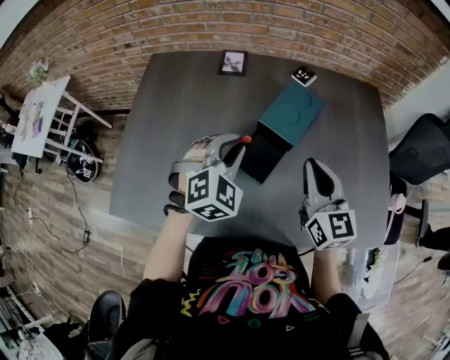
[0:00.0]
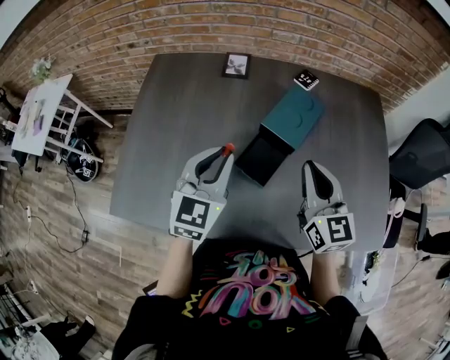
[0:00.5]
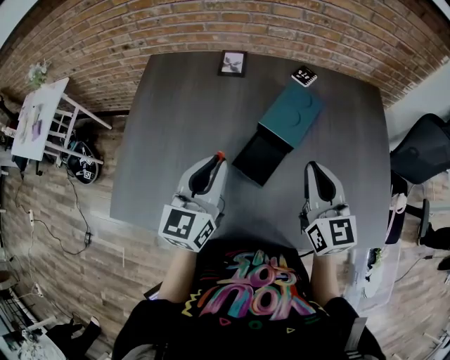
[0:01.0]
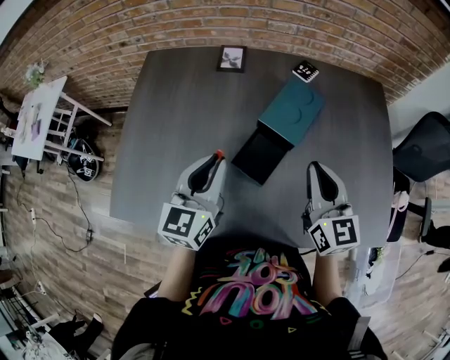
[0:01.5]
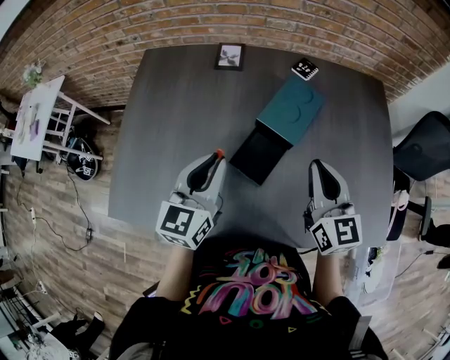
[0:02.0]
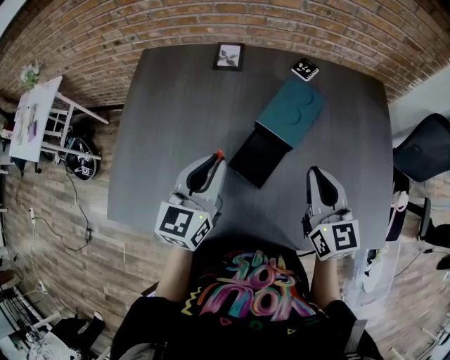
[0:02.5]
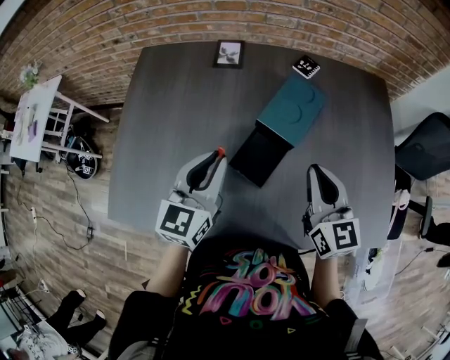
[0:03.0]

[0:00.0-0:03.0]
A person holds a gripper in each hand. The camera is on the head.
0:00.0 to 0:01.5: The left gripper ends up some 5 cm from where it was, and rotates around the line of its fingers by some 50 degrees, counterclockwise from behind.
0:01.5 to 0:03.0: The grippers make only small movements.

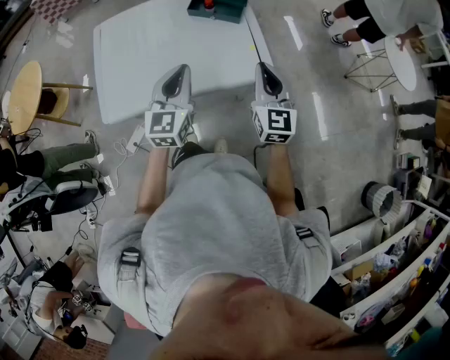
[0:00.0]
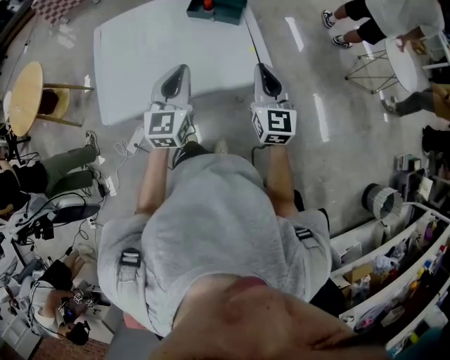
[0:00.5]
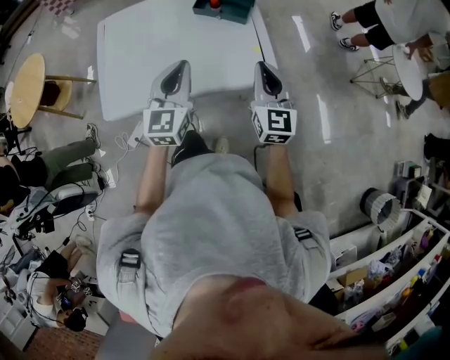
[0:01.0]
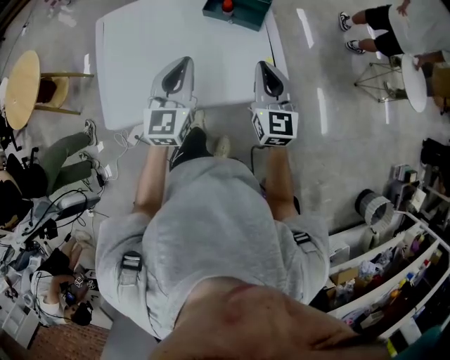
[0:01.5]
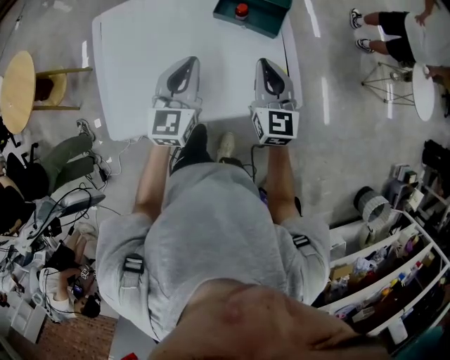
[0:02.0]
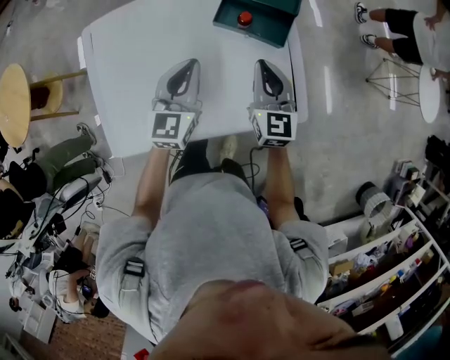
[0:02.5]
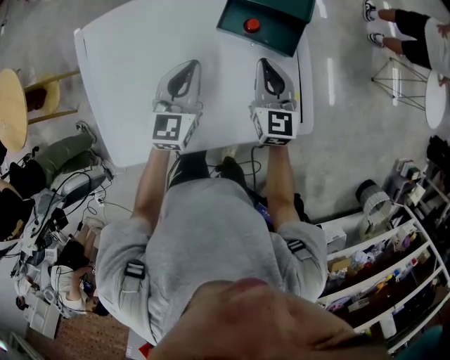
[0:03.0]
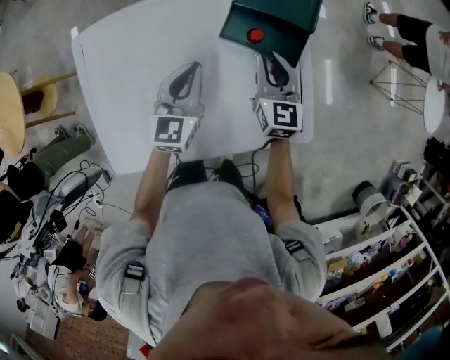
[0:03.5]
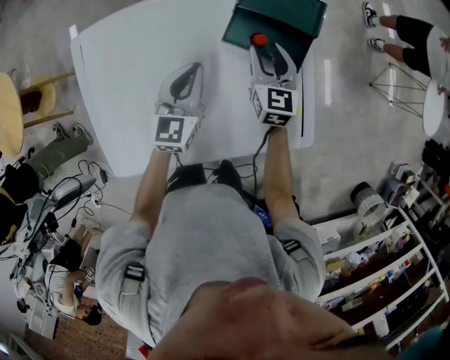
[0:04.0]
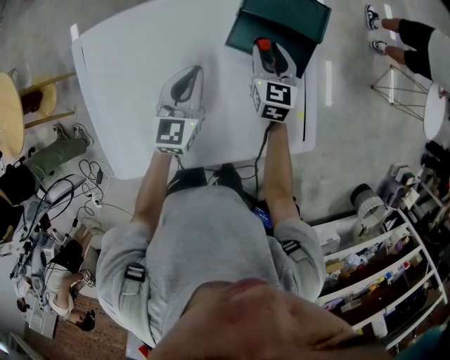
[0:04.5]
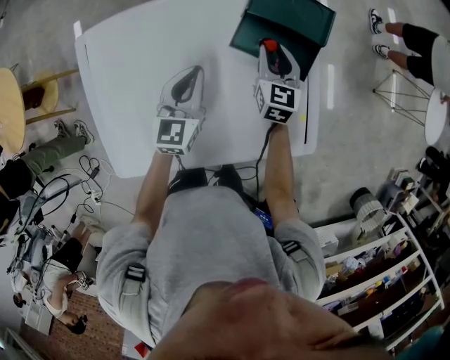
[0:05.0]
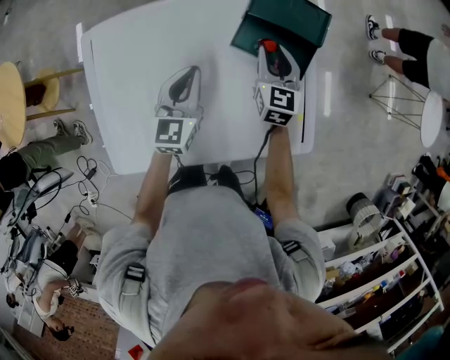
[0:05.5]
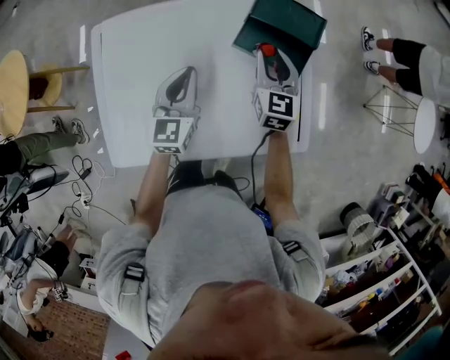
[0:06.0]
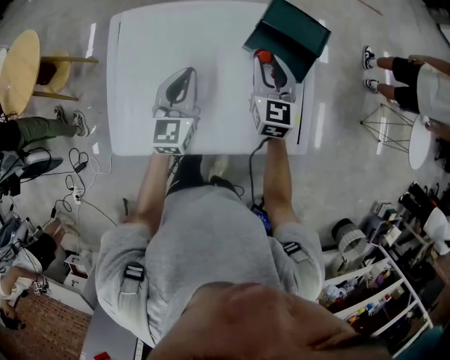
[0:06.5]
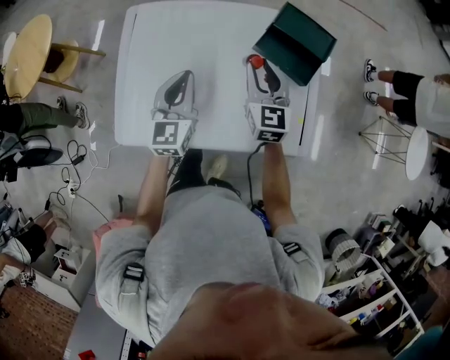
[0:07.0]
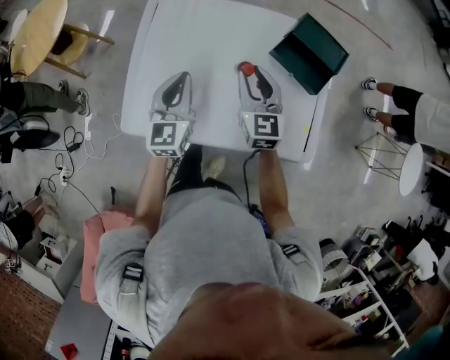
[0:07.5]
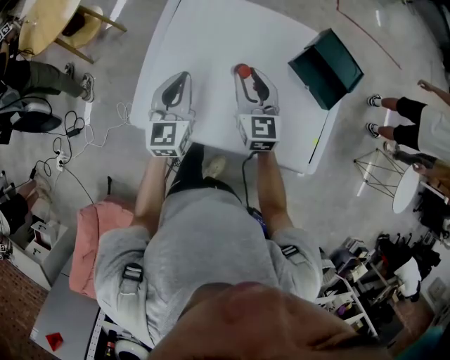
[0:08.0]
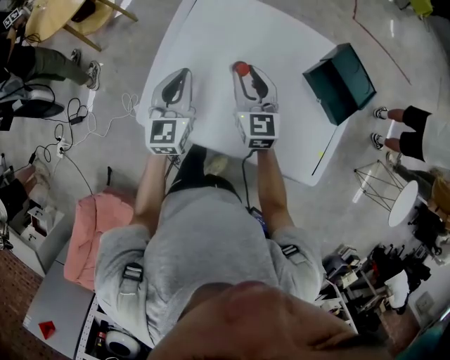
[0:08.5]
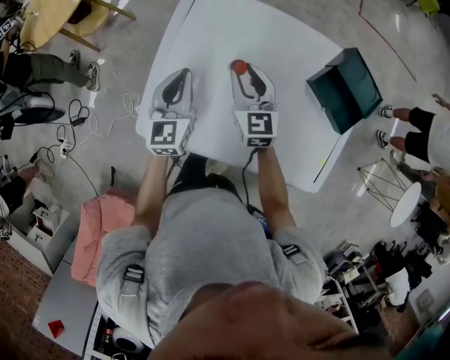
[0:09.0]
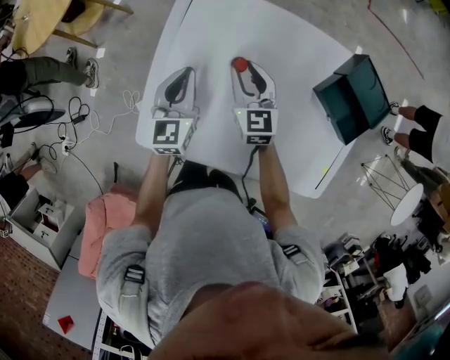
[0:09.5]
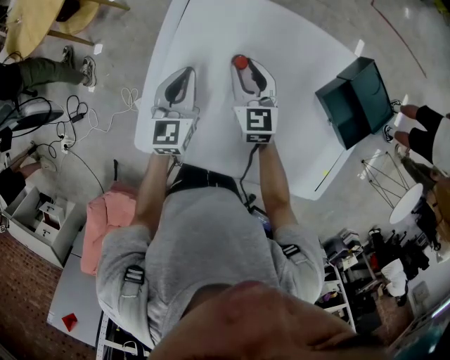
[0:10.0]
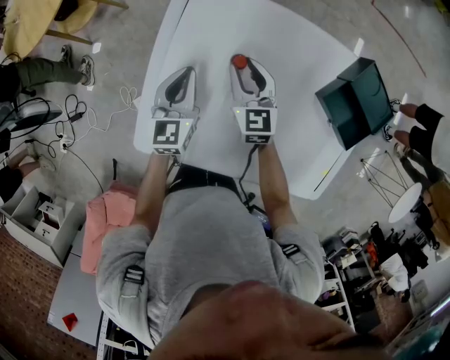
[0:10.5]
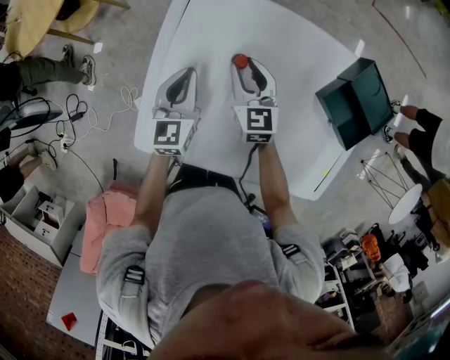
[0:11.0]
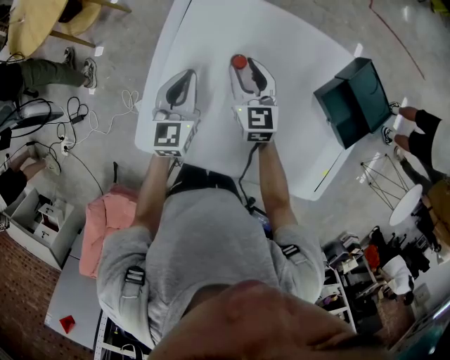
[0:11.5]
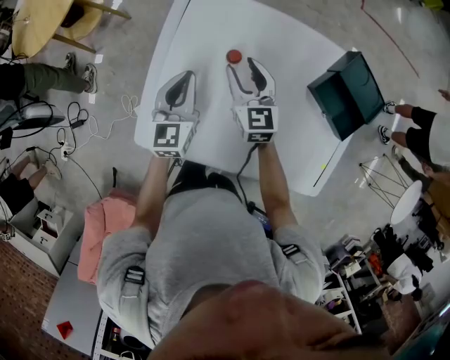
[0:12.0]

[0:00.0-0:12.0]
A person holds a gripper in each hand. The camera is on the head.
0:00.0 to 0:02.0: The left gripper travels forward by some 20 cm, while the right gripper travels forward and to the left by about 25 cm.
0:02.0 to 0:04.0: The grippers both shift forward and downward by approximately 20 cm. The right gripper opens its fingers.
0:04.0 to 0:06.0: The right gripper travels upward by about 5 cm. The left gripper shifts by approximately 10 cm.
0:06.0 to 0:08.0: The left gripper moves some 20 cm, and changes its angle by approximately 20 degrees, while the right gripper moves approximately 25 cm, and rotates about 30 degrees.
0:08.0 to 0:10.0: The grippers both shift forward and downward by some 20 cm.
0:10.0 to 0:12.0: The right gripper shifts by approximately 5 cm. The left gripper changes place by about 5 cm.

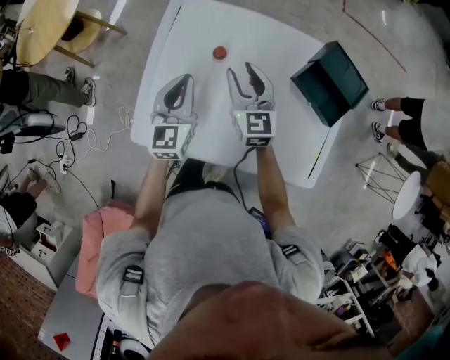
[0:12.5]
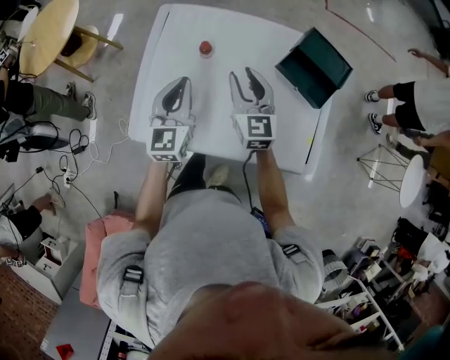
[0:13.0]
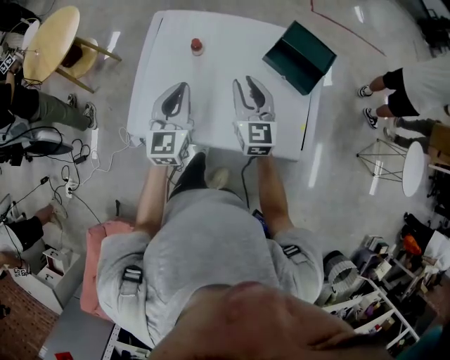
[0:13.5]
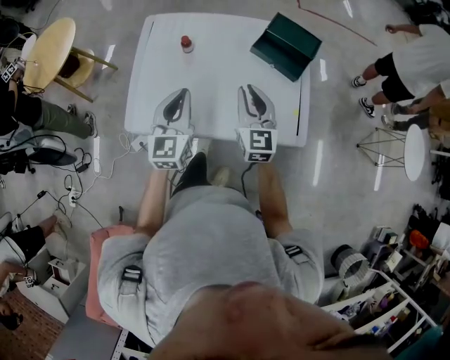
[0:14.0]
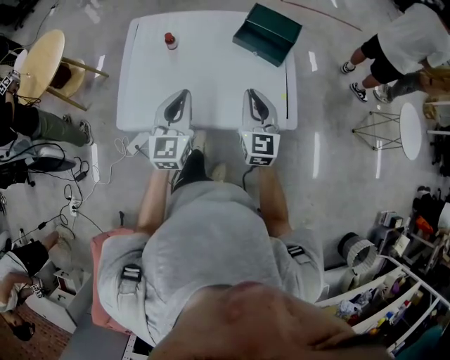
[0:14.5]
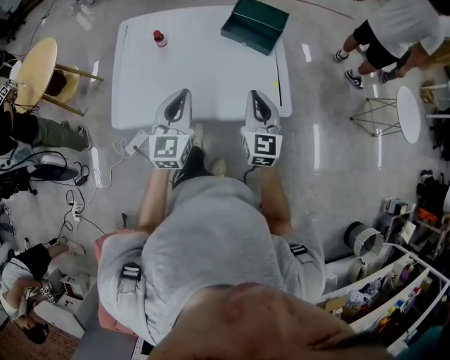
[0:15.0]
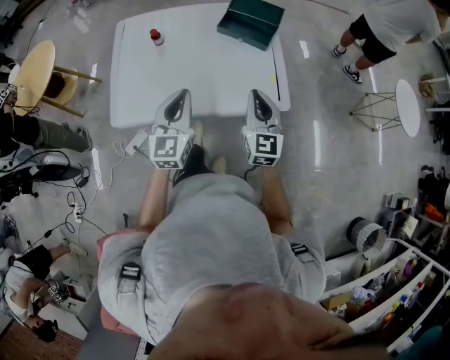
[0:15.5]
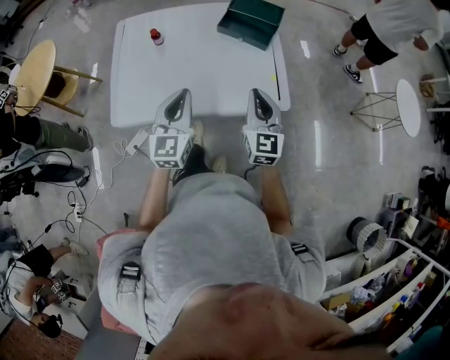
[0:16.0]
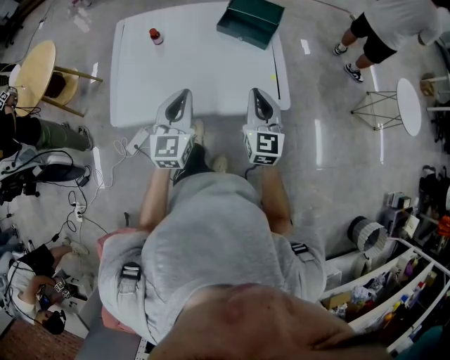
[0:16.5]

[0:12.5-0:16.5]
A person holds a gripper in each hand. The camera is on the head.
0:12.5 to 0:14.5: The two grippers go some 30 cm backward and to the right. The right gripper changes its angle by approximately 20 degrees, and closes.
0:14.5 to 0:16.5: The left gripper shifts by approximately 5 cm. Meanwhile the right gripper heads to the right, covering about 5 cm.

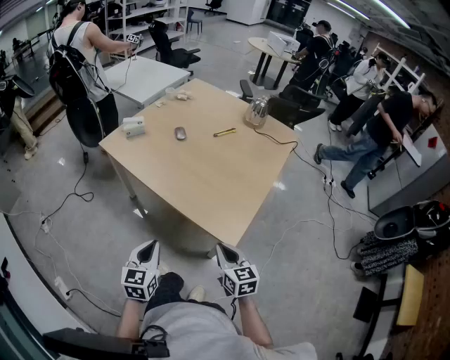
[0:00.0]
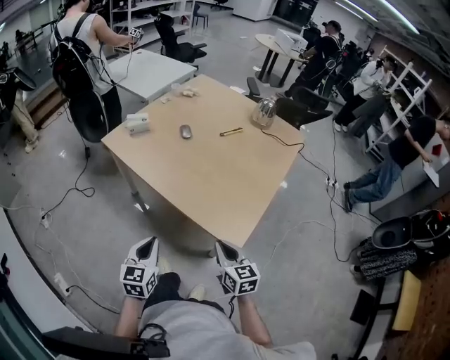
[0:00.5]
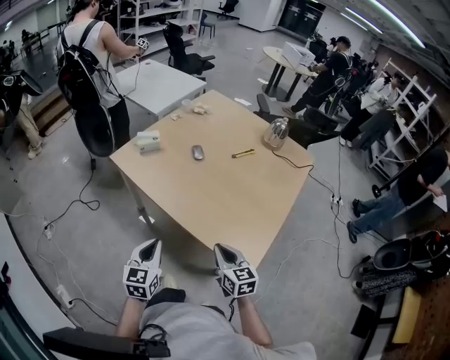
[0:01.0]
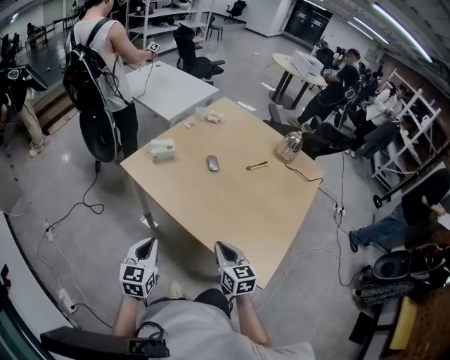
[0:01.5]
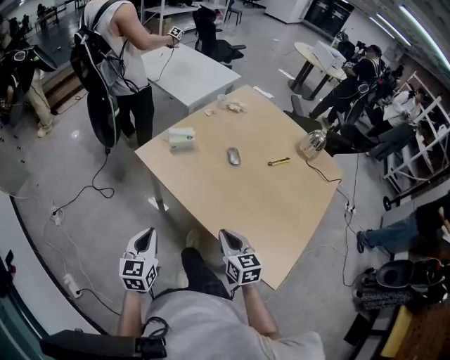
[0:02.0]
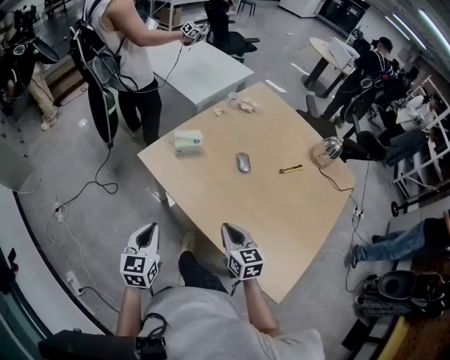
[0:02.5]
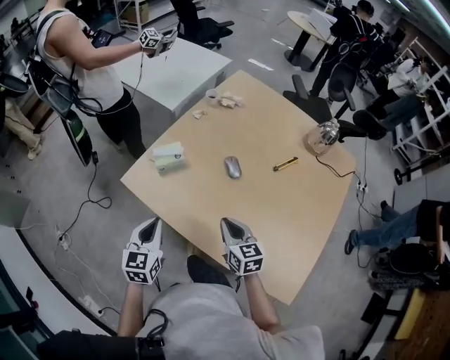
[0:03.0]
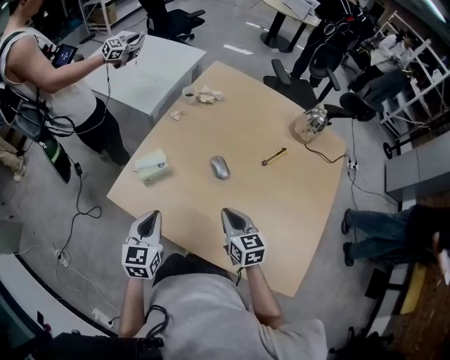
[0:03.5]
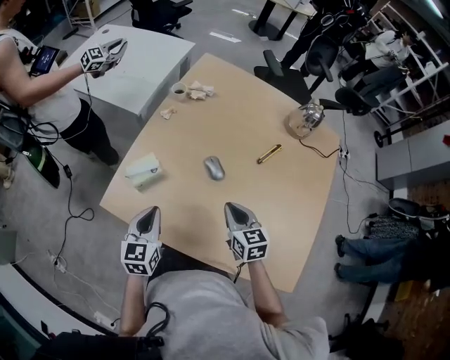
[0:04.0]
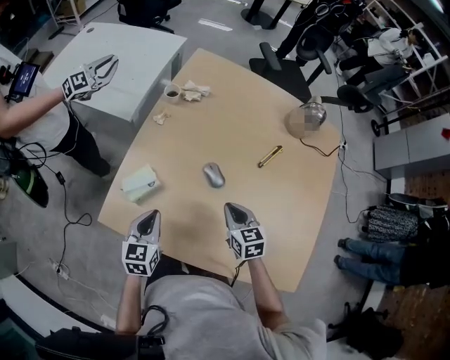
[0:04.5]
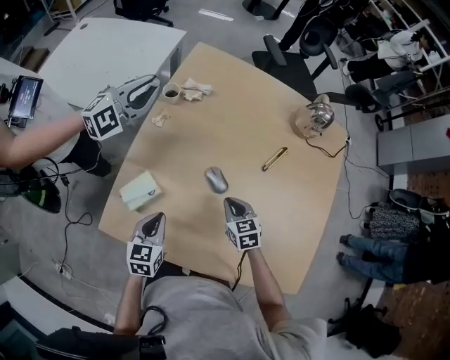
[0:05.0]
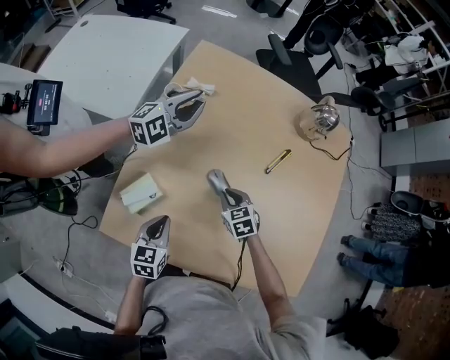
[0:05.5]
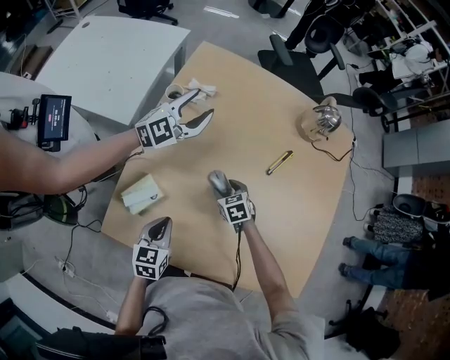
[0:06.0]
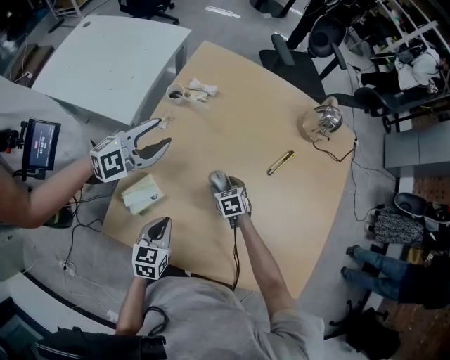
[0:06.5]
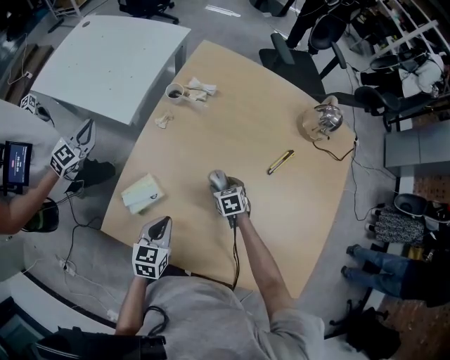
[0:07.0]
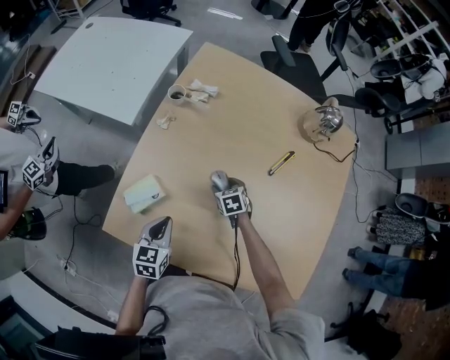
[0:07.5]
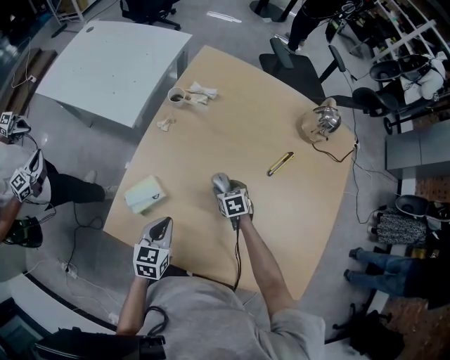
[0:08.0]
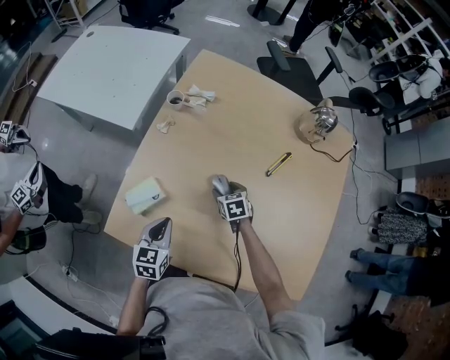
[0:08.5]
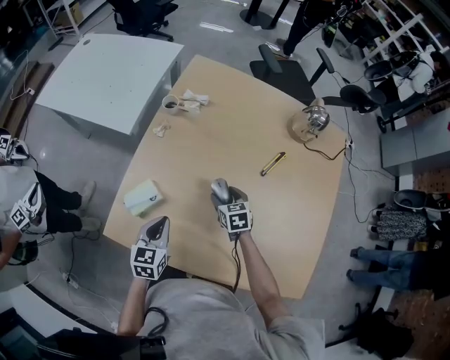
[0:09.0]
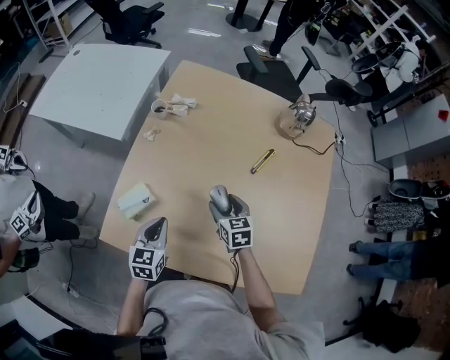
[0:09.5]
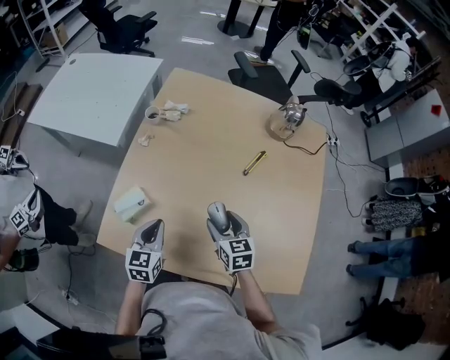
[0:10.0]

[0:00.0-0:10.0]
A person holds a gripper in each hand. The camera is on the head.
0:00.0 to 0:02.0: The grippers both shift forward and to the left by about 35 cm.
0:02.0 to 0:04.0: Both grippers travel together forward, some 30 cm. The left gripper swivels some 20 degrees.
0:04.0 to 0:06.0: The left gripper goes about 10 cm downward and forward. Meanwhile the right gripper is displaced downward and forward by approximately 25 cm, rotates about 30 degrees, and opens up.
0:06.0 to 0:08.0: The grippers make only small movements.
0:08.0 to 0:10.0: The right gripper is displaced upward and backward by roughly 20 cm, and swivels approximately 30 degrees. The left gripper is displaced upward by some 5 cm.
